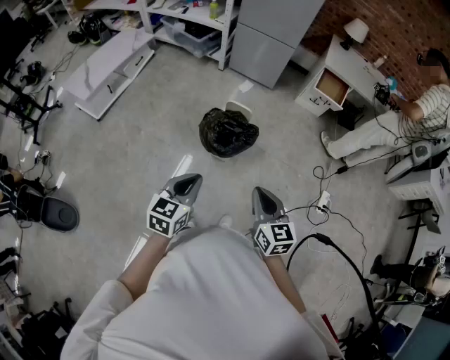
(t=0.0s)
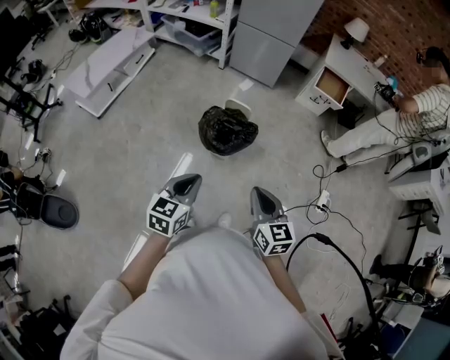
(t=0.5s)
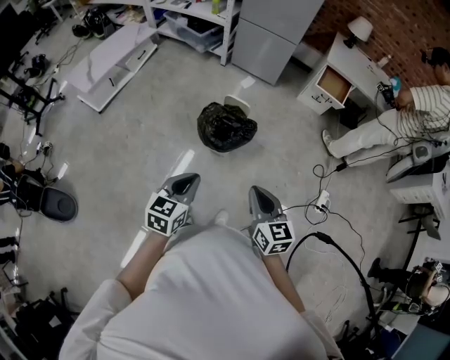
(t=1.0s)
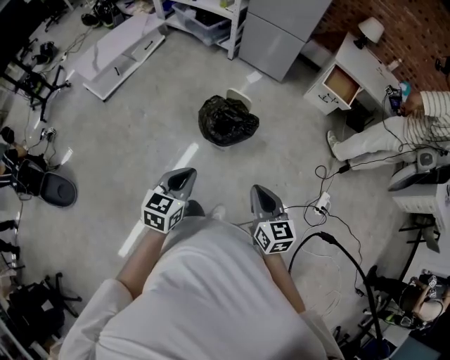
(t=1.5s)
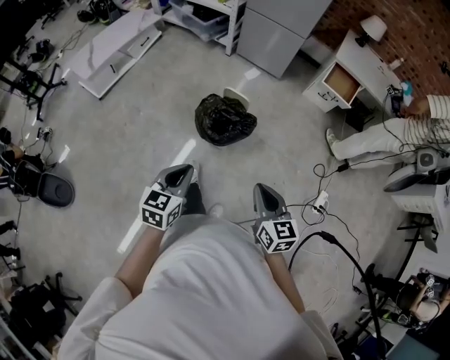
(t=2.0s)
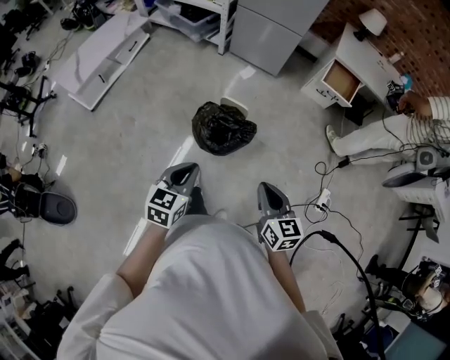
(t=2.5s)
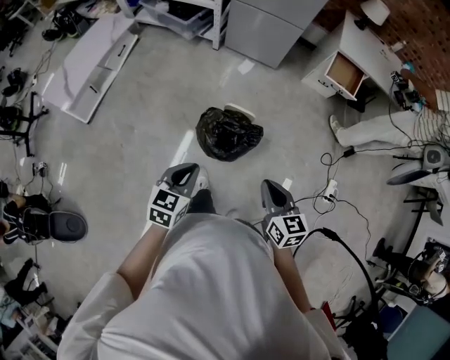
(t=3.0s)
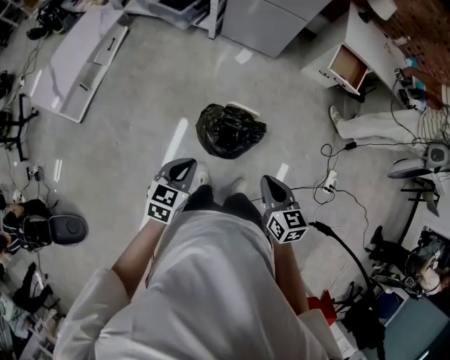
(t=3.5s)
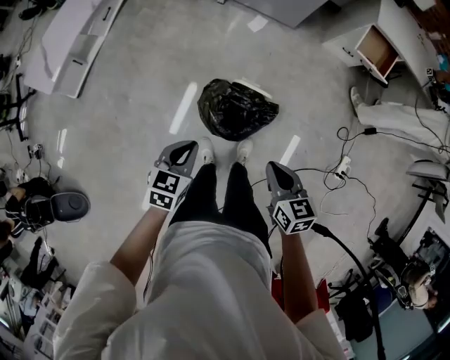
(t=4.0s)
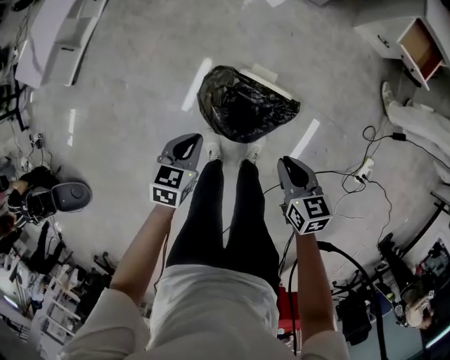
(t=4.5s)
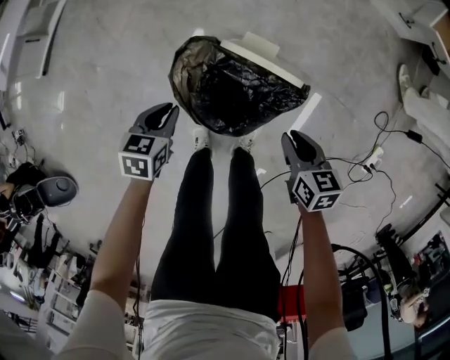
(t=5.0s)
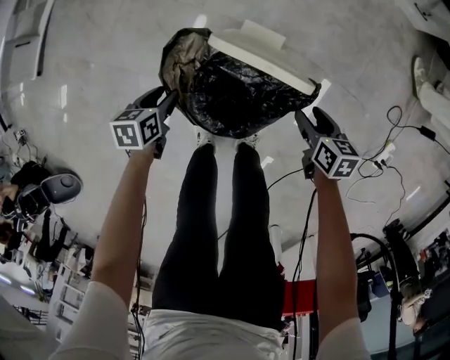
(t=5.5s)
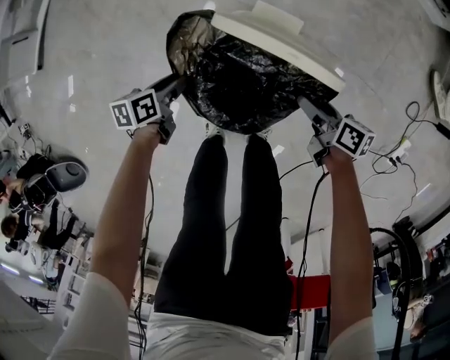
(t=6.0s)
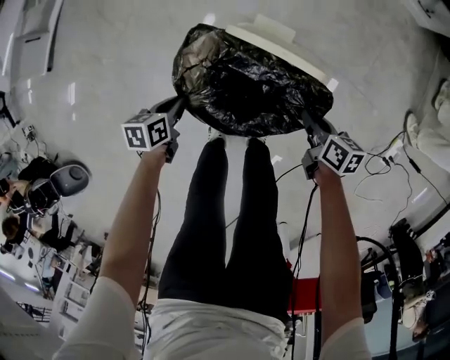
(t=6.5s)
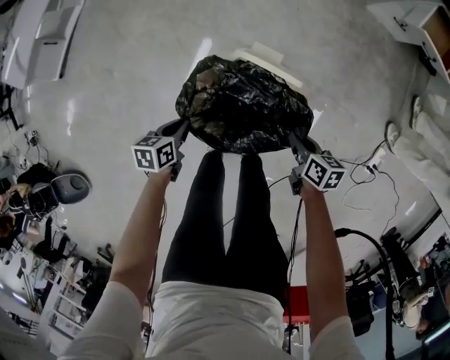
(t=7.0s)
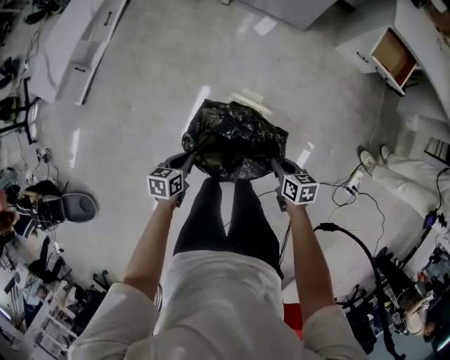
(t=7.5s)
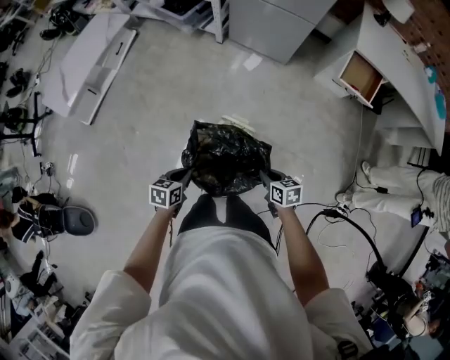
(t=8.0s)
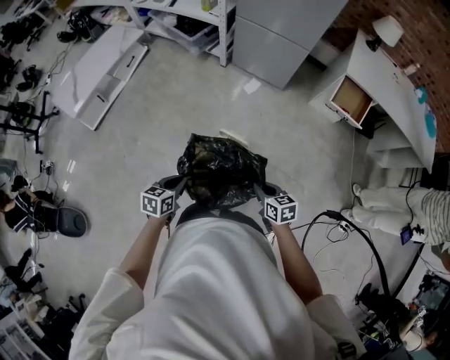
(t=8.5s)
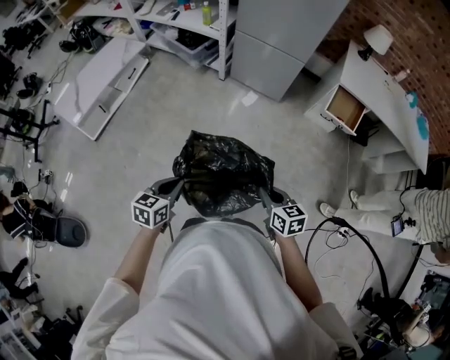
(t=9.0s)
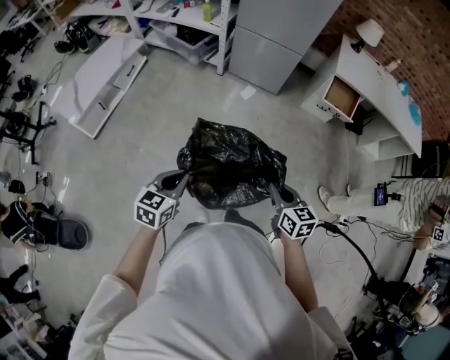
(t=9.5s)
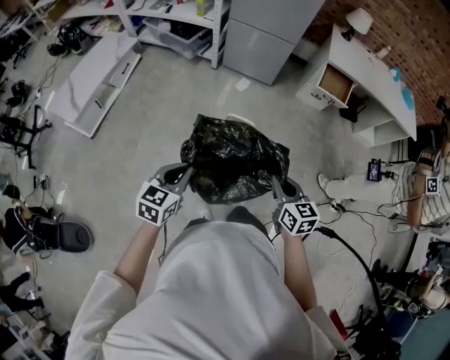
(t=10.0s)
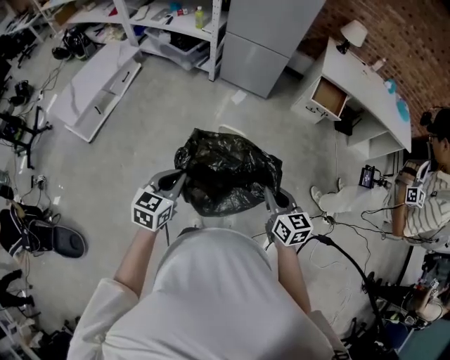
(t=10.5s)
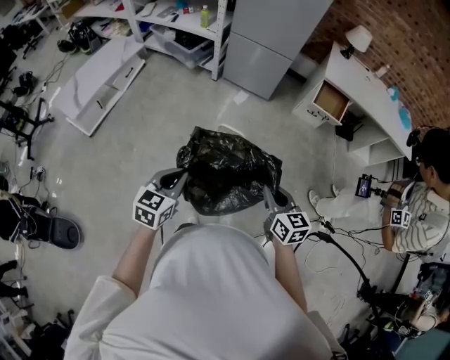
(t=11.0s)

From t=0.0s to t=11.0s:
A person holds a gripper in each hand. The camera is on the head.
From t=0.0s to t=2.0s: The left gripper shifts approximately 5 cm to the right. Meanwhile the right gripper is displaced to the right by some 10 cm.
From t=2.0s to t=3.5s: Both grippers move forward and to the left, about 30 cm.
From t=3.5s to t=5.5s: The two grippers go approximately 60 cm downward. The right gripper swivels approximately 30 degrees, and opens; the left gripper changes its angle by some 40 degrees, and opens its fingers.
From t=5.5s to t=7.5s: Both grippers travel together upward, about 30 cm. The left gripper closes its fingers. The right gripper closes its fingers.
From t=7.5s to t=9.0s: Both grippers travel together upward, about 30 cm. The left gripper rotates about 20 degrees; the right gripper rotates about 20 degrees.
From t=9.0s to t=11.0s: The grippers both shift backward and upward by about 15 cm.

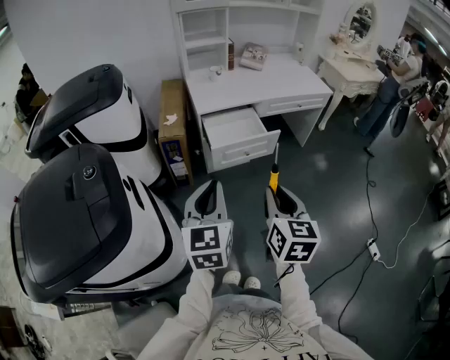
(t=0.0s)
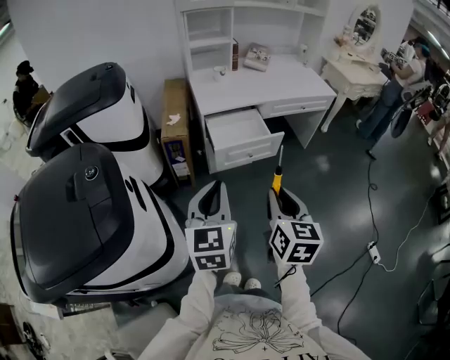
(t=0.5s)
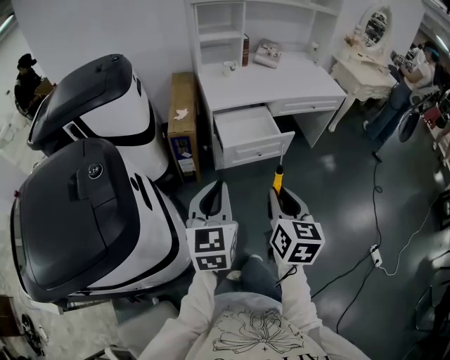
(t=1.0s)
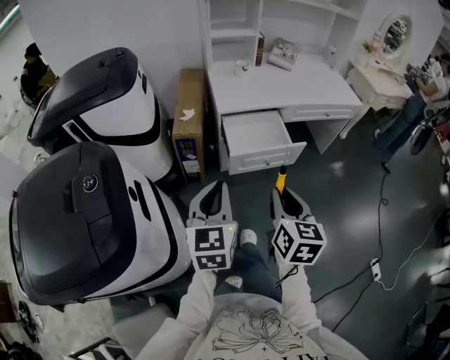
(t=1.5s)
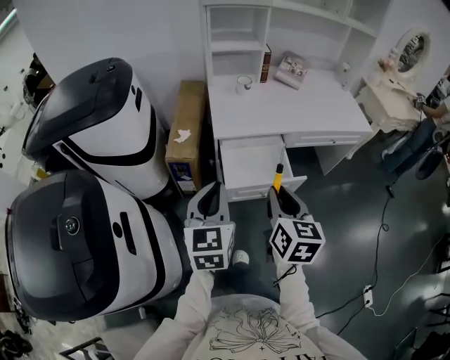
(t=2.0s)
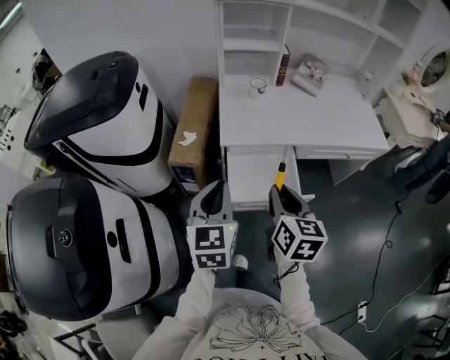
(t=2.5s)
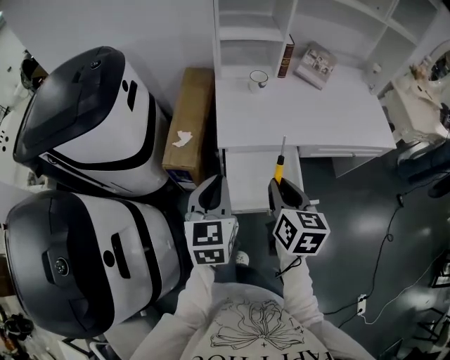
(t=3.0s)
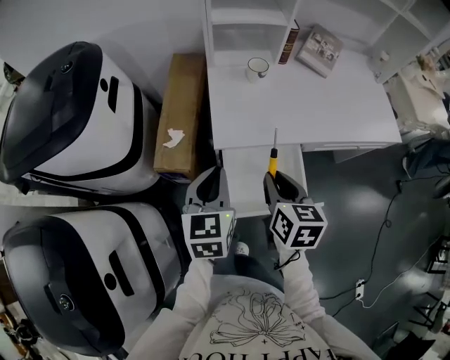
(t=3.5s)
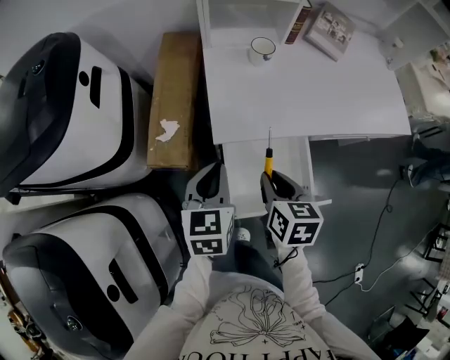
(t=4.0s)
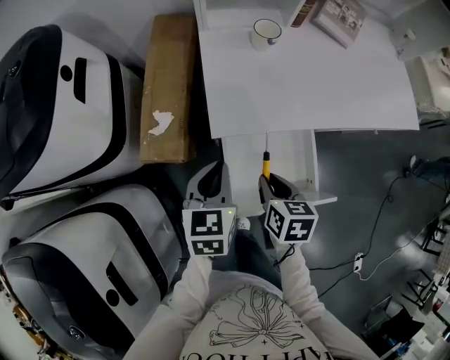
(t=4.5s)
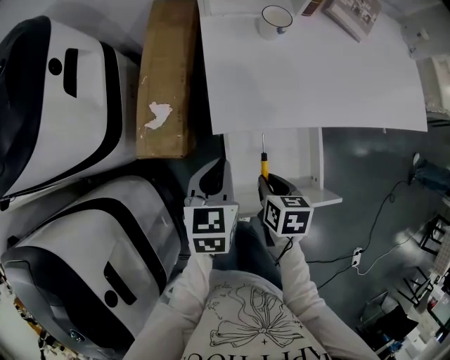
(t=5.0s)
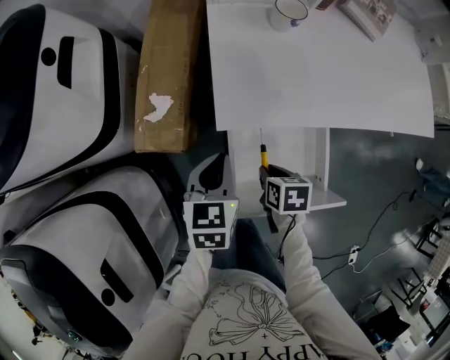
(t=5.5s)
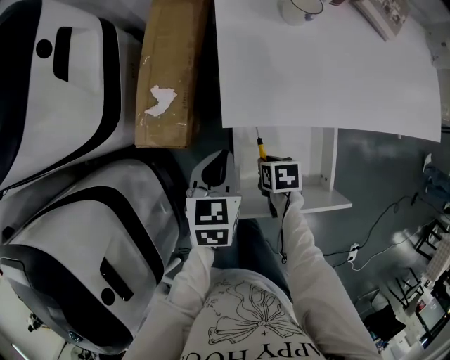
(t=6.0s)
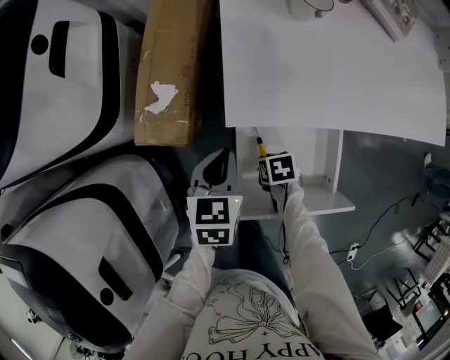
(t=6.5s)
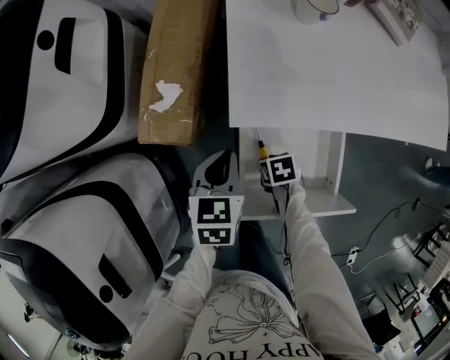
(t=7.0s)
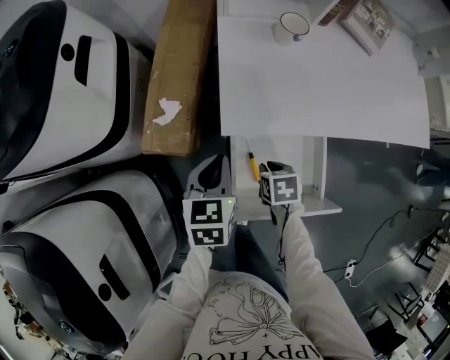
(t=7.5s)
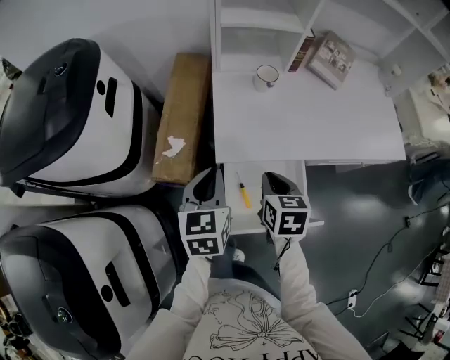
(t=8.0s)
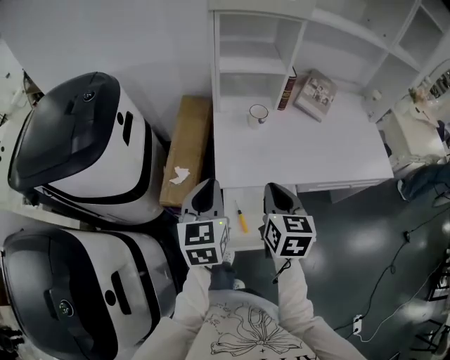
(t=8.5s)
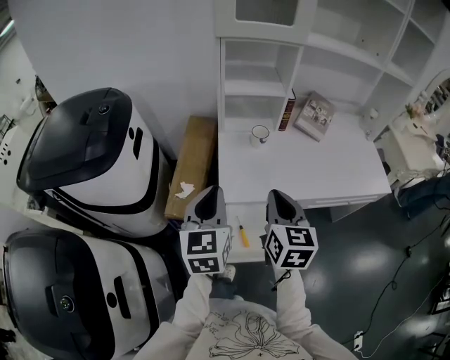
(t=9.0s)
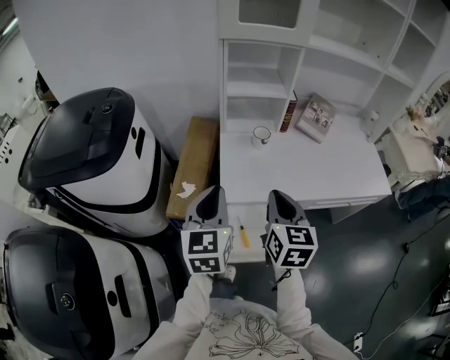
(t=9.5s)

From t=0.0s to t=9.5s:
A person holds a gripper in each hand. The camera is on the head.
From t=0.0s to t=2.0s: The two grippers go some 25 cm forward.
From t=2.0s to t=4.0s: The two grippers go about 35 cm forward and downward. The right gripper rotates about 20 degrees.
From t=4.0s to t=5.5s: The left gripper goes some 10 cm downward. The right gripper goes roughly 20 cm downward, and turns by approximately 30 degrees.
From t=5.5s to t=7.5s: The right gripper travels downward and back again, about 10 cm each way.
From t=7.5s to t=9.5s: The two grippers go approximately 35 cm upward. The right gripper tilts its fingers approximately 50 degrees upward. The left gripper tilts its fingers about 30 degrees upward.

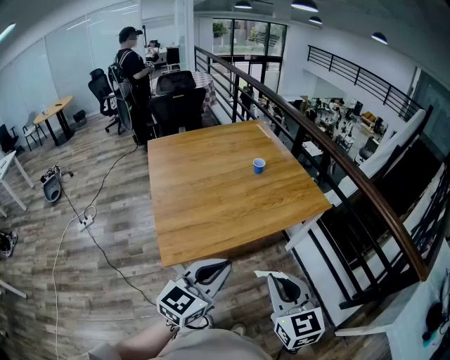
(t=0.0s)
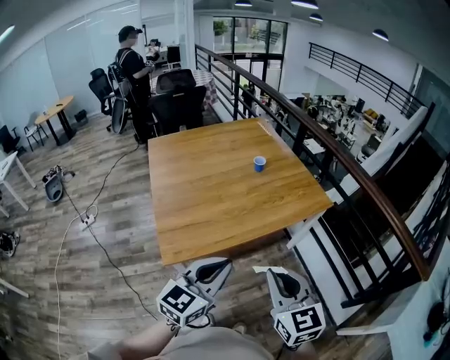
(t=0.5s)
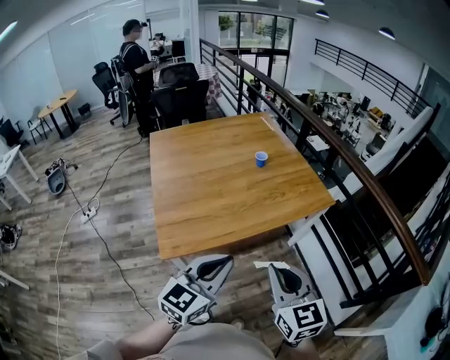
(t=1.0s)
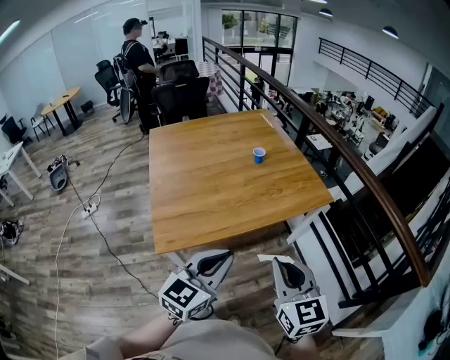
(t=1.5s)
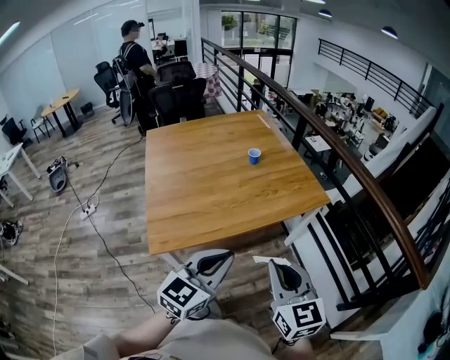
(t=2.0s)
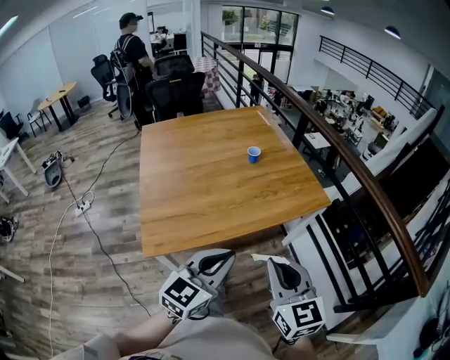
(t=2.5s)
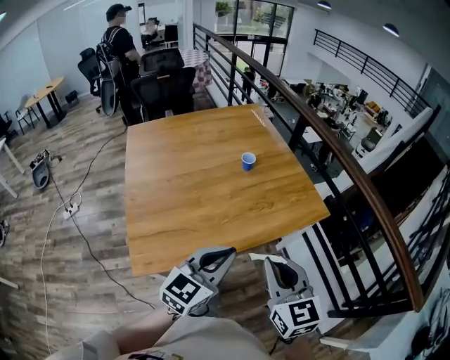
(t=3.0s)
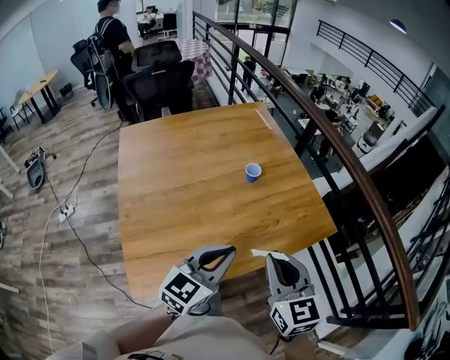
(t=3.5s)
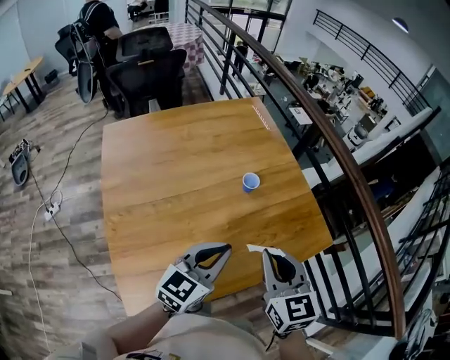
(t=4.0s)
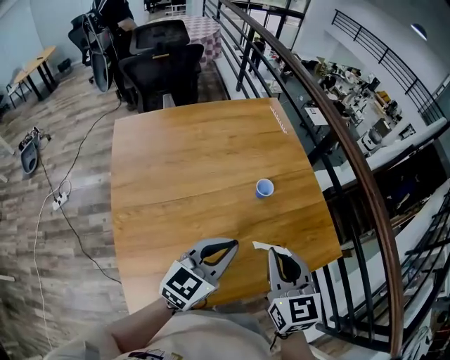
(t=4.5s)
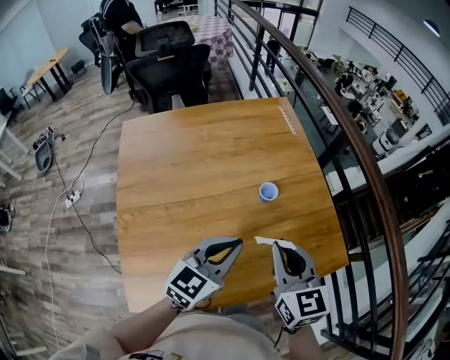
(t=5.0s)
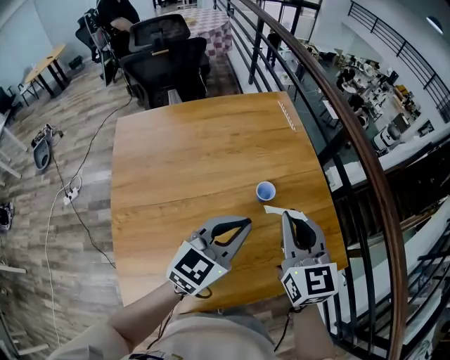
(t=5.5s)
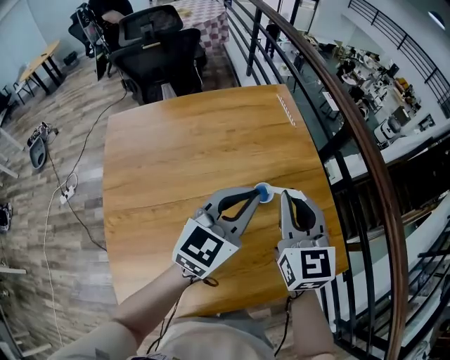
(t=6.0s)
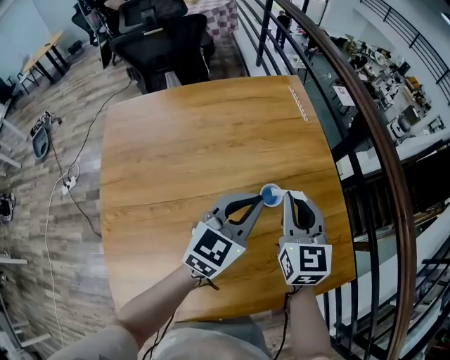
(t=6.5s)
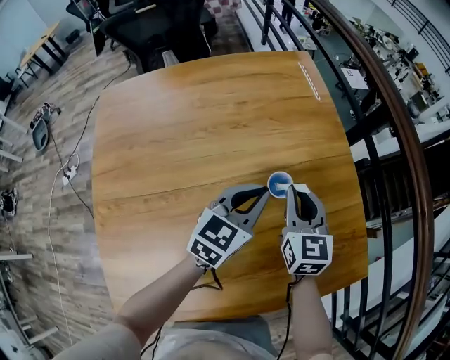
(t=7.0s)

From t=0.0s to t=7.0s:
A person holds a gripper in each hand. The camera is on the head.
From t=0.0s to t=2.0s: The left gripper travels to the right by about 10 cm. Meanwhile the right gripper heads to the right and forward, covering roughly 10 cm.
From t=2.0s to t=3.5s: The grippers both shift forward by some 25 cm.
From t=3.5s to t=5.0s: The grippers both shift forward by about 20 cm.
From t=5.0s to t=7.0s: The two grippers go some 25 cm forward and downward.
